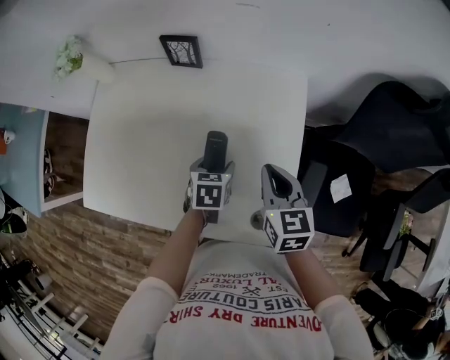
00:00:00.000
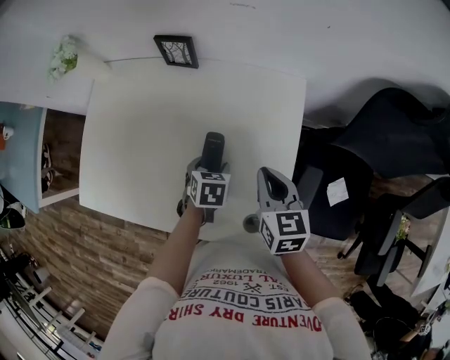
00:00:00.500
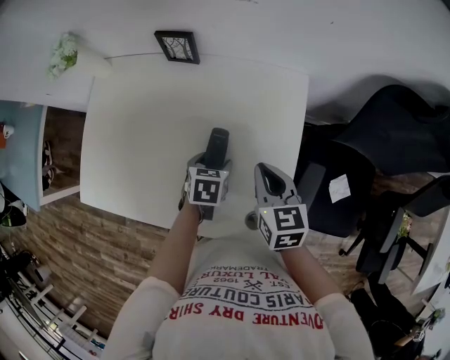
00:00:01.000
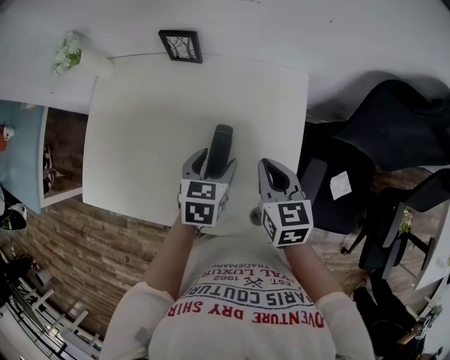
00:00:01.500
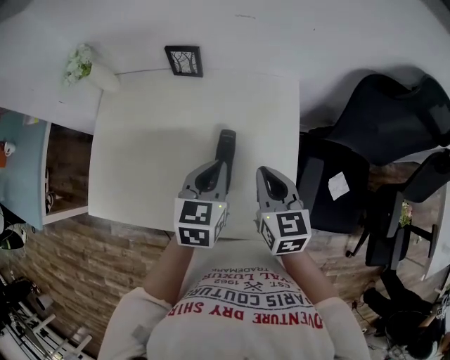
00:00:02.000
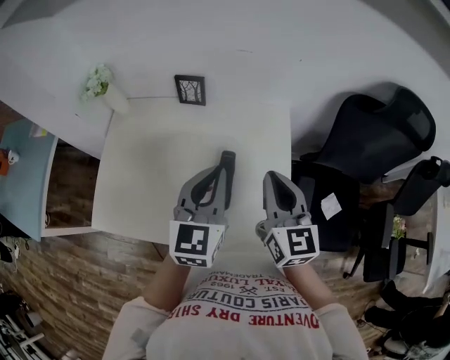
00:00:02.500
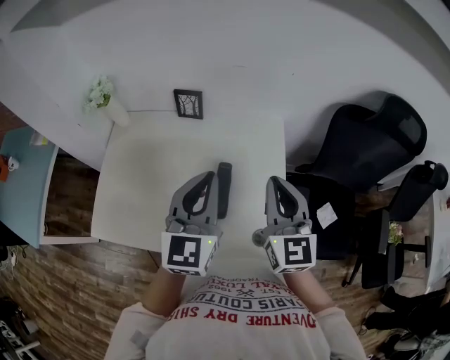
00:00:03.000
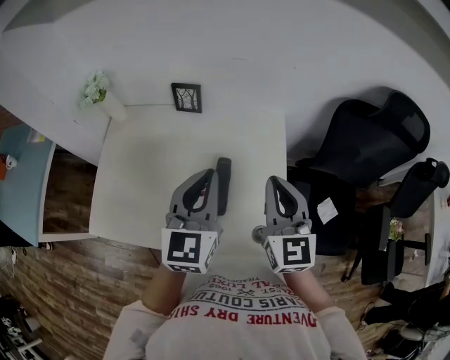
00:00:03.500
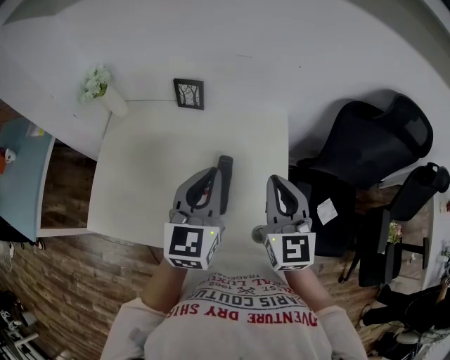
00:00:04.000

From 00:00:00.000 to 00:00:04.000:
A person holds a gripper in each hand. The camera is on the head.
From 00:00:00.000 to 00:00:02.000: The right gripper moves roughly 5 cm; the left gripper moves upward, some 15 cm, changes its angle by roughly 30 degrees, and closes up.
From 00:00:02.000 to 00:00:04.000: Both grippers move upward, roughly 10 cm. The left gripper changes its angle by about 20 degrees. Meanwhile the right gripper swivels about 30 degrees.

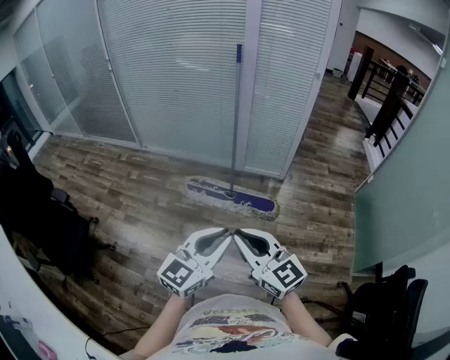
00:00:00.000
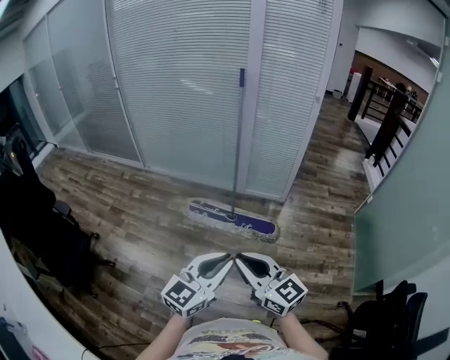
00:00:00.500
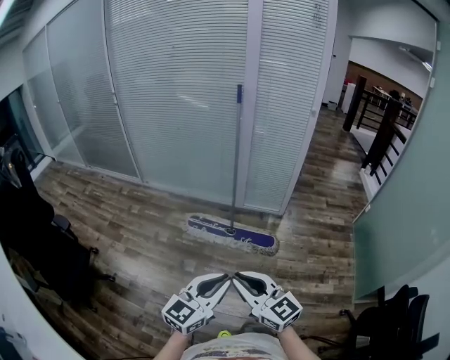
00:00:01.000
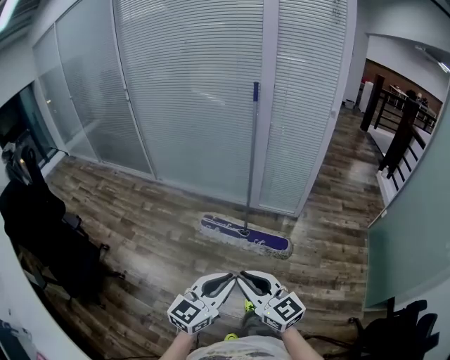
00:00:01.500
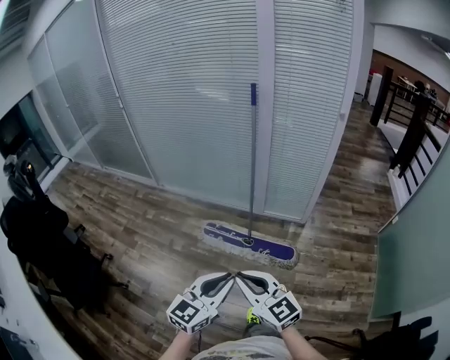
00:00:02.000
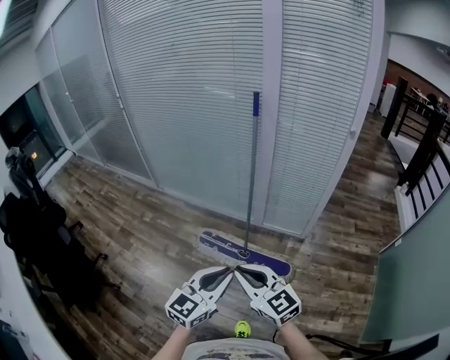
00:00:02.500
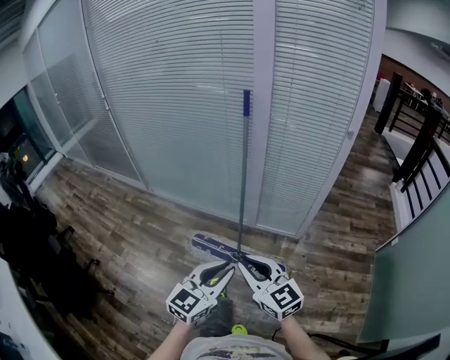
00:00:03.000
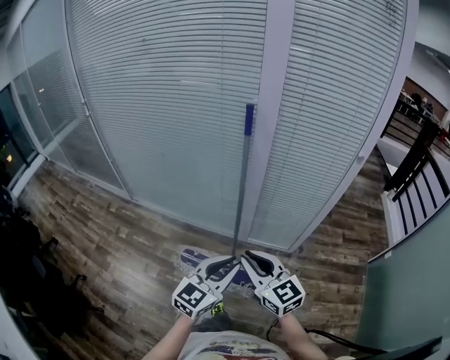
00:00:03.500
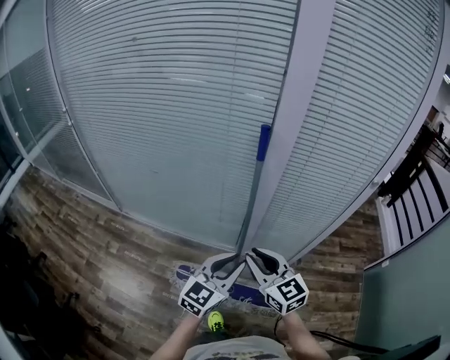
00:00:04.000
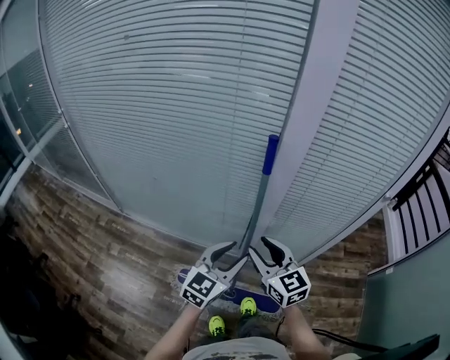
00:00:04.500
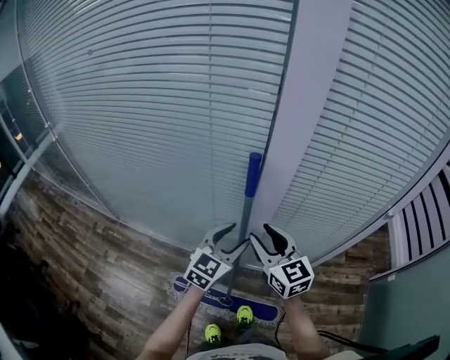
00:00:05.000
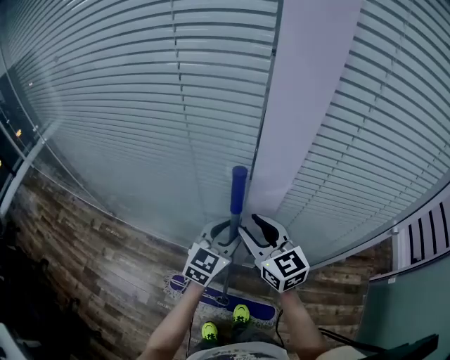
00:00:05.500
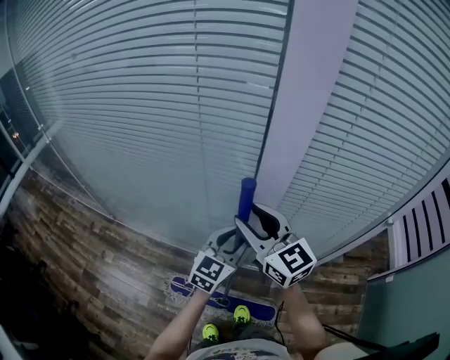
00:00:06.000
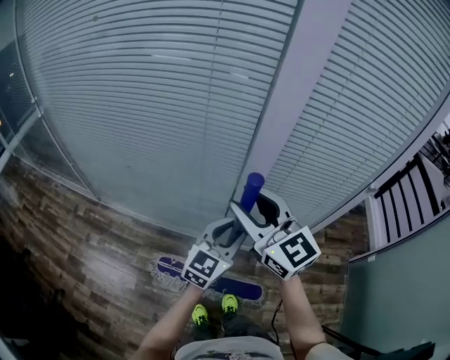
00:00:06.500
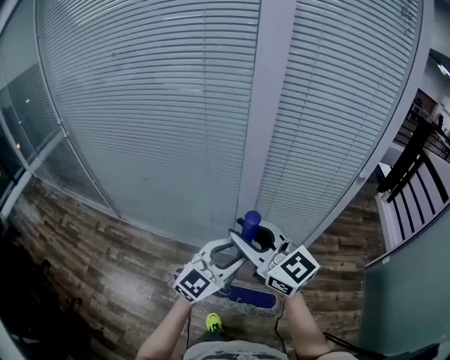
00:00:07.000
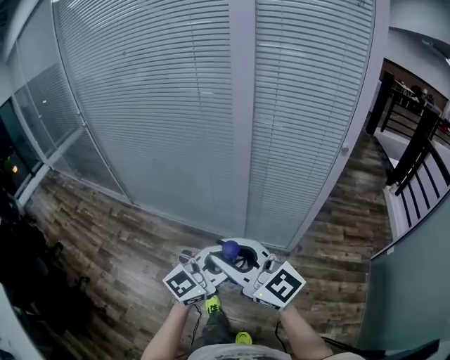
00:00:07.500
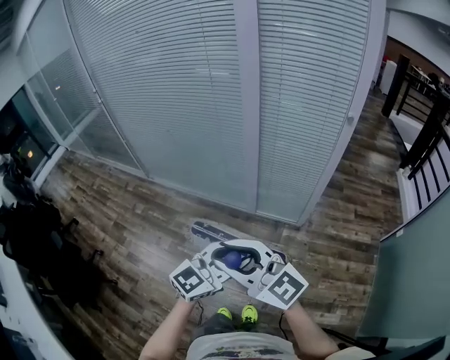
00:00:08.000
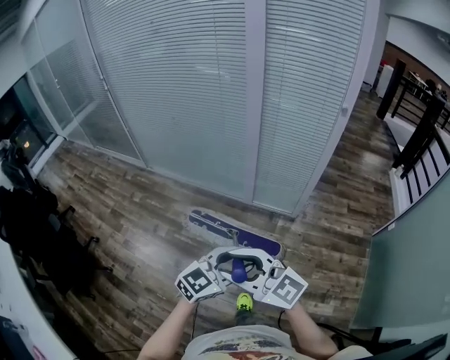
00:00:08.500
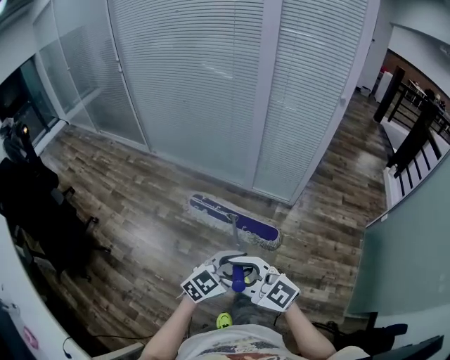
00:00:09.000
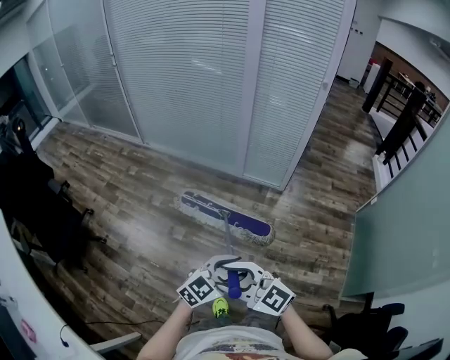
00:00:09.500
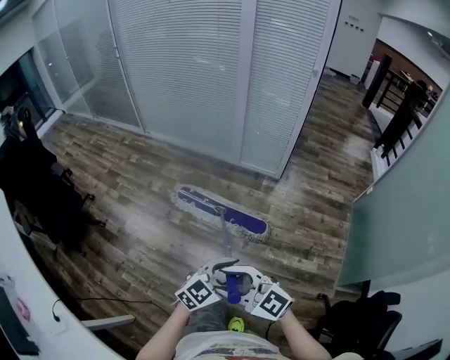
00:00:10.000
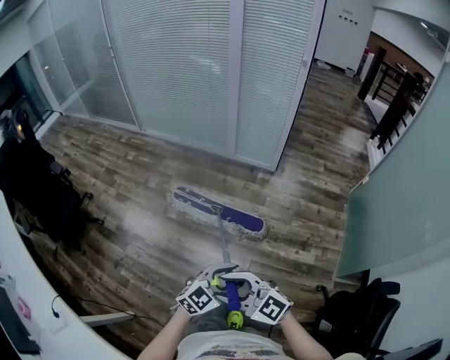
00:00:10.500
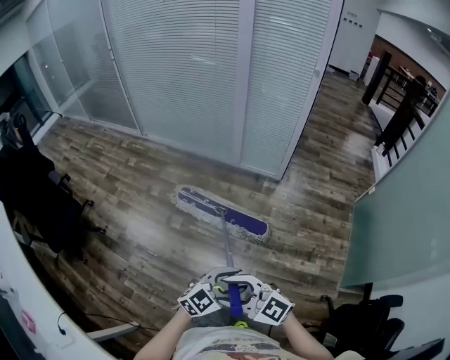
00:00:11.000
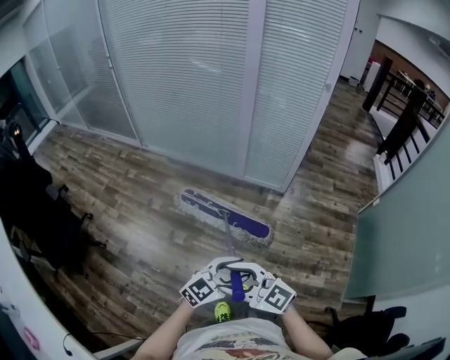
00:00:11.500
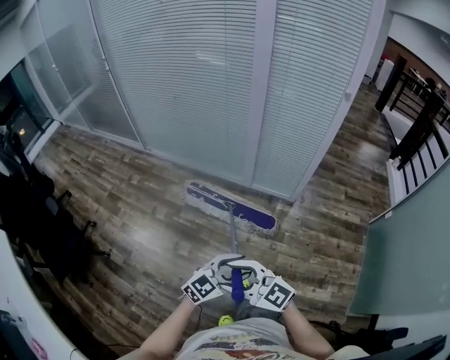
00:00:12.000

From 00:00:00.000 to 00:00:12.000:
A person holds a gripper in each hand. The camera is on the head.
From 00:00:00.000 to 00:00:02.000: Both grippers travel together forward, approximately 20 cm.
From 00:00:02.000 to 00:00:04.000: The two grippers travel together, forward, about 60 cm.
From 00:00:04.000 to 00:00:06.000: Both grippers move forward, about 30 cm. The right gripper opens.
From 00:00:06.000 to 00:00:08.000: The pair of grippers is taken backward, roughly 60 cm. The right gripper rotates some 30 degrees.
From 00:00:08.000 to 00:00:10.000: The two grippers travel together, about 60 cm. The right gripper rotates about 30 degrees.
From 00:00:10.000 to 00:00:12.000: The left gripper changes place by about 35 cm. The right gripper changes place by some 40 cm.

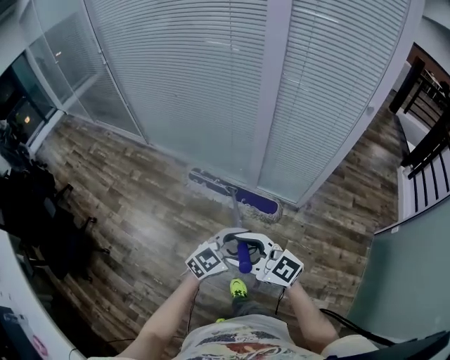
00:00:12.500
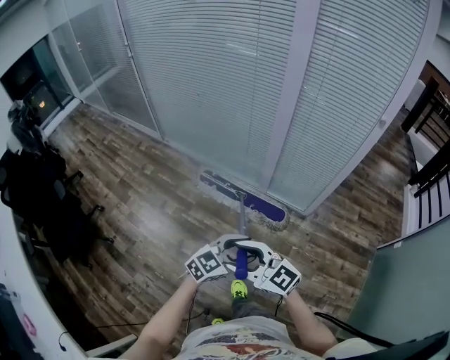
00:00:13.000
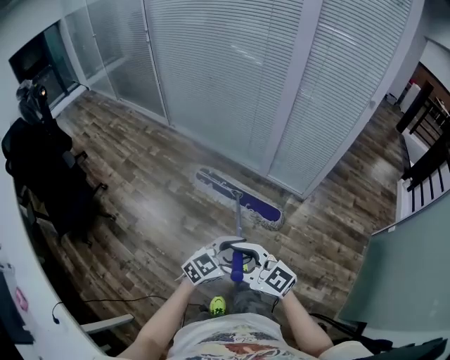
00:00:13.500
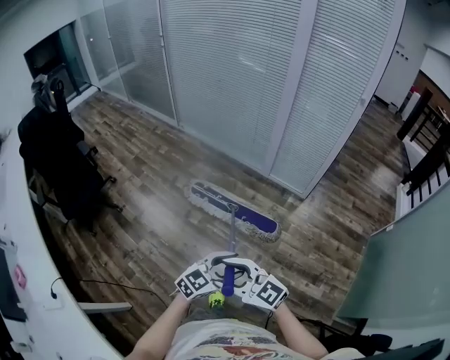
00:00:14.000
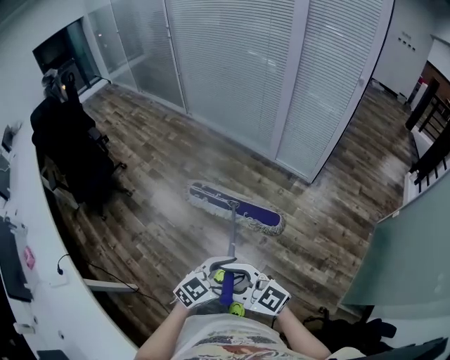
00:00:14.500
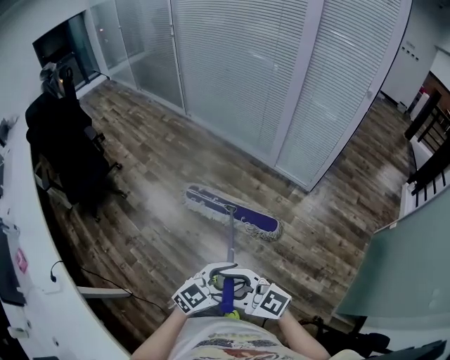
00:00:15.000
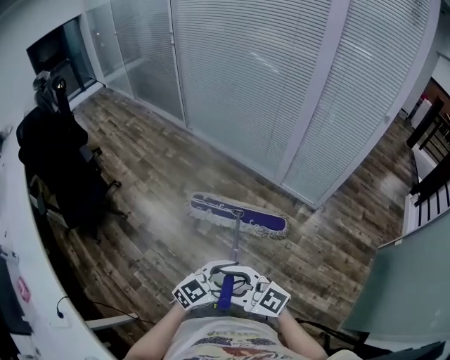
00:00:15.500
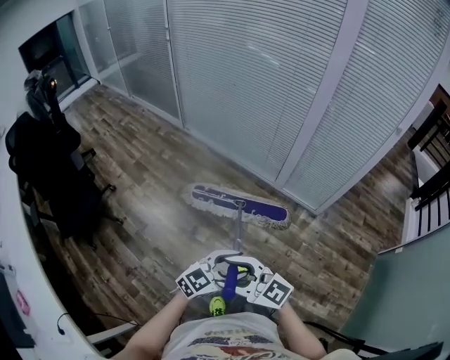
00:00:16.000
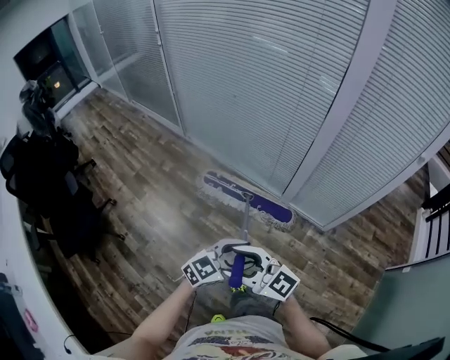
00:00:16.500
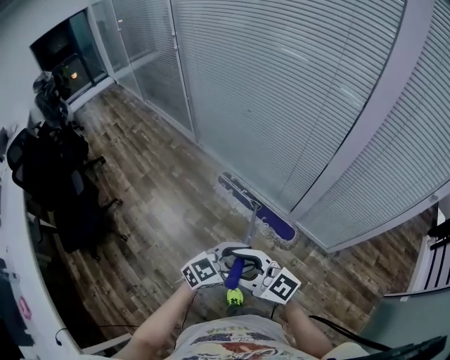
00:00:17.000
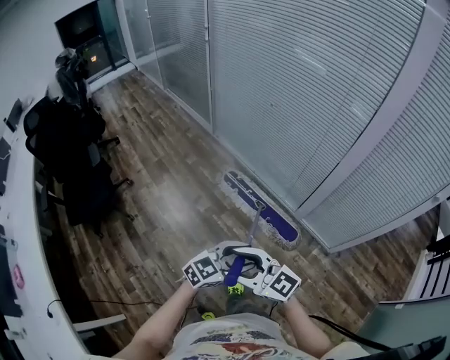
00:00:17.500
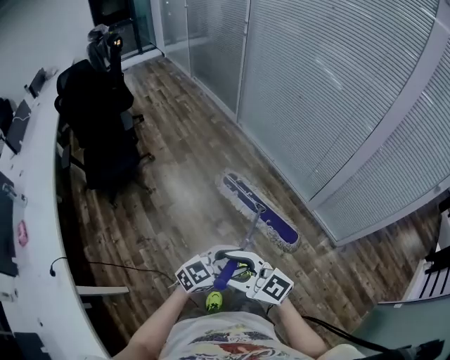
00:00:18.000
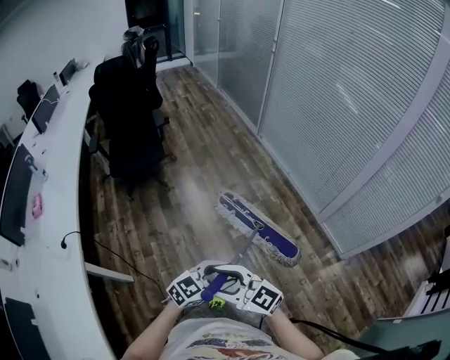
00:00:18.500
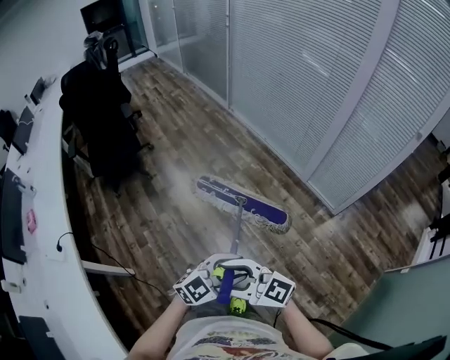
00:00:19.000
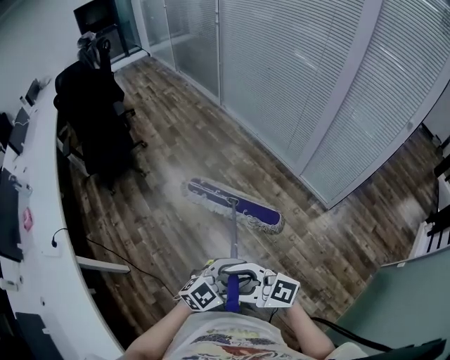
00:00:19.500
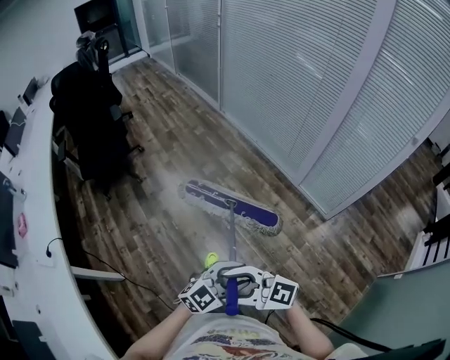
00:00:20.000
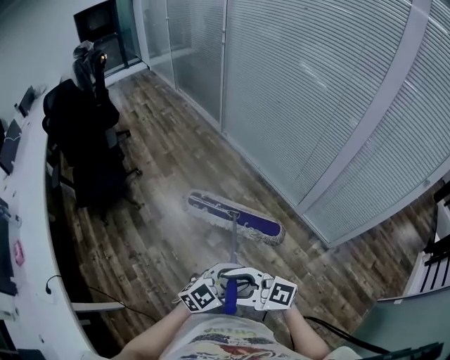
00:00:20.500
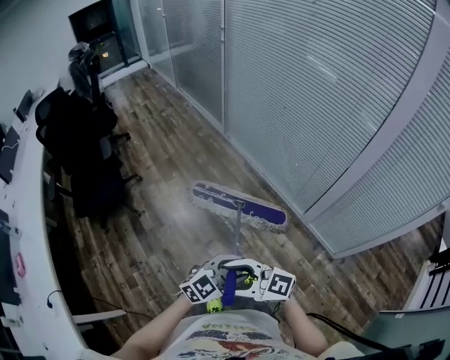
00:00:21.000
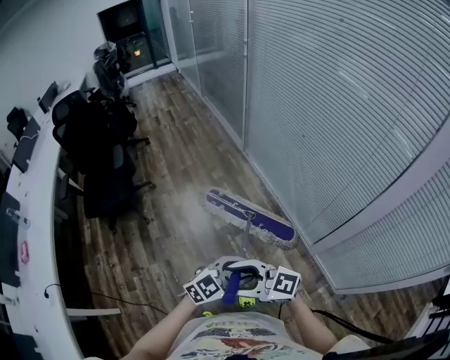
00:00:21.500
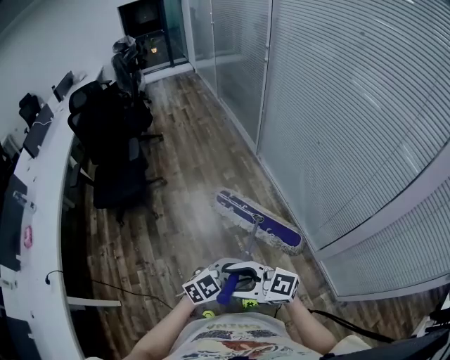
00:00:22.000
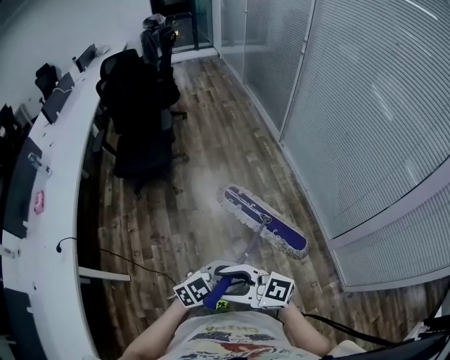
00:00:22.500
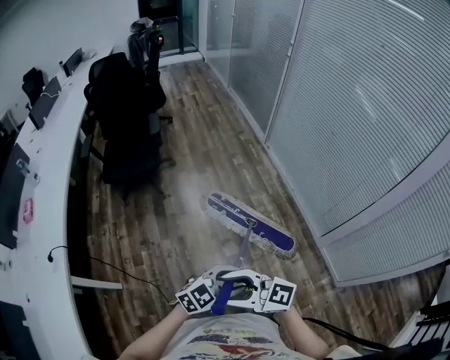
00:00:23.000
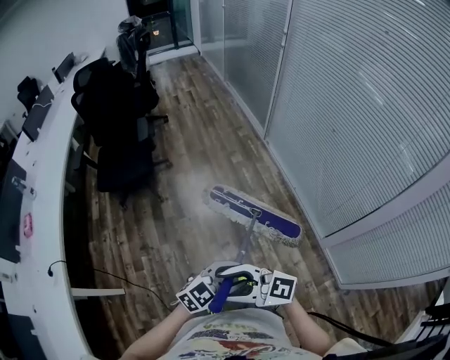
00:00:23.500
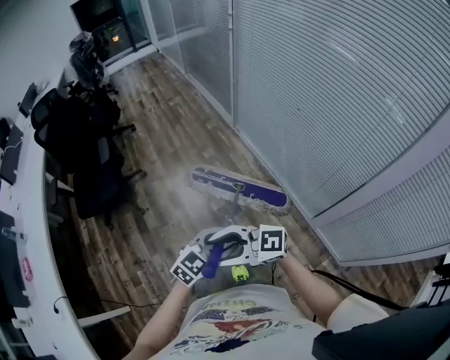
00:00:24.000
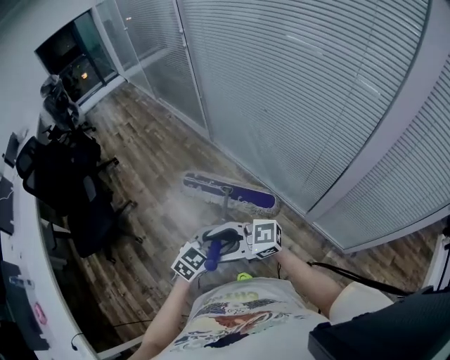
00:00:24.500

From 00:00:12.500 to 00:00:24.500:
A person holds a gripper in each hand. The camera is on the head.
From 00:00:12.500 to 00:00:14.500: The two grippers travel together, some 60 cm.
From 00:00:14.500 to 00:00:16.500: Both grippers are carried about 70 cm.
From 00:00:16.500 to 00:00:18.500: The two grippers travel together, approximately 50 cm. The right gripper swivels about 30 degrees, while the left gripper changes its angle by roughly 30 degrees.
From 00:00:18.500 to 00:00:20.500: The right gripper shifts by some 20 cm. The left gripper moves approximately 20 cm.
From 00:00:20.500 to 00:00:22.500: The left gripper rotates roughly 20 degrees, while the right gripper swivels some 20 degrees.
From 00:00:22.500 to 00:00:24.500: The right gripper shifts by roughly 40 cm; the left gripper shifts by some 40 cm.
